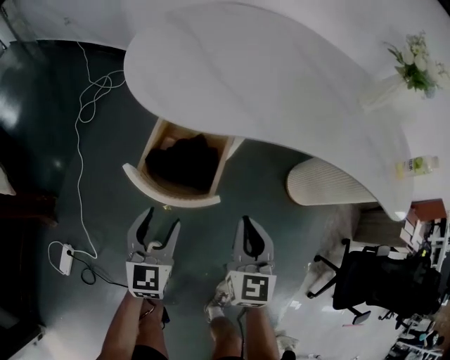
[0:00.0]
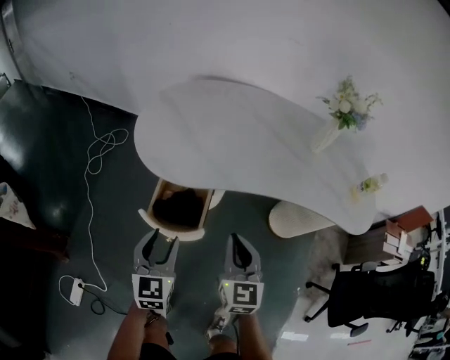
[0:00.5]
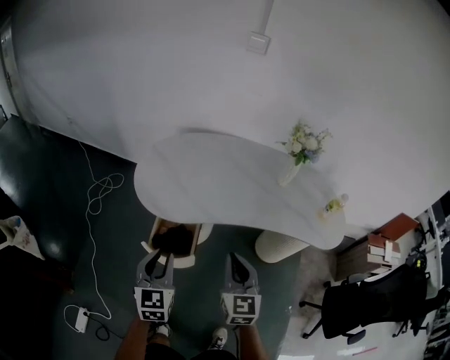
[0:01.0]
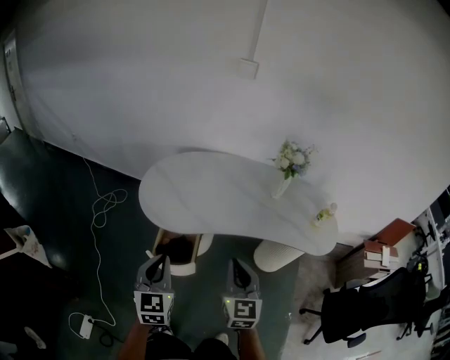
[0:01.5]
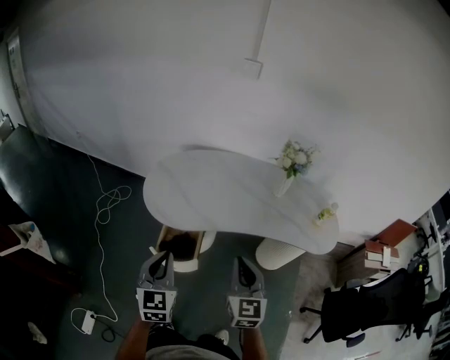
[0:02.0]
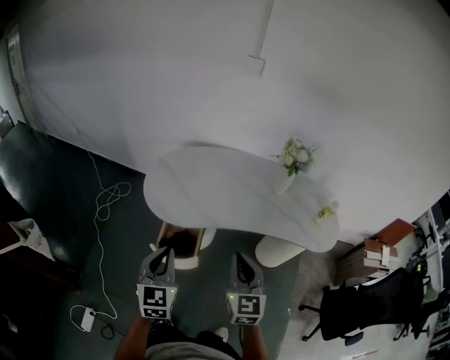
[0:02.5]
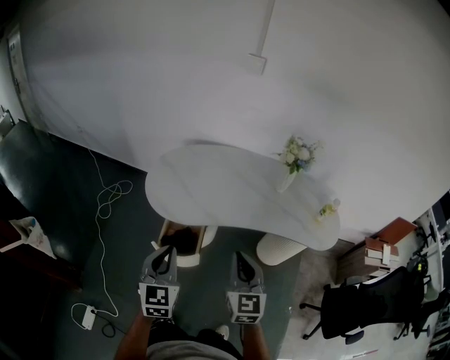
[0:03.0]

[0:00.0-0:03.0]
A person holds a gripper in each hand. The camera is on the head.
0:00.0 to 0:01.5: The grippers both shift upward by roughly 40 cm. The left gripper closes up.
0:01.5 to 0:03.0: The grippers move only a little.

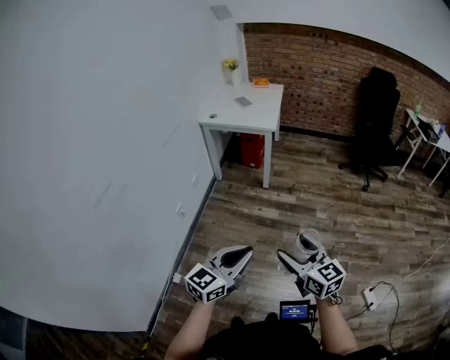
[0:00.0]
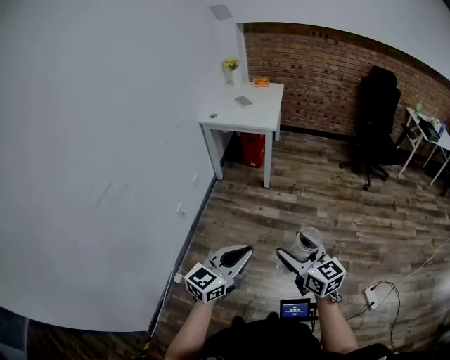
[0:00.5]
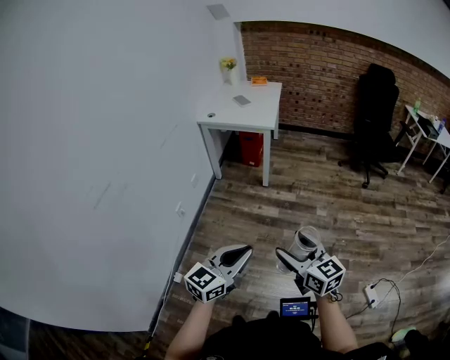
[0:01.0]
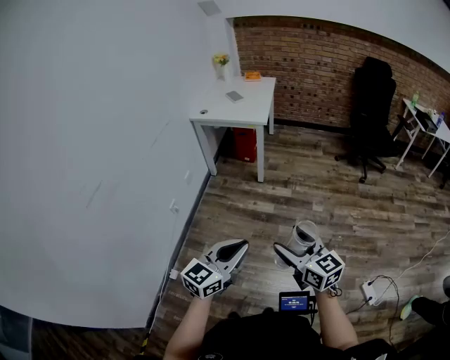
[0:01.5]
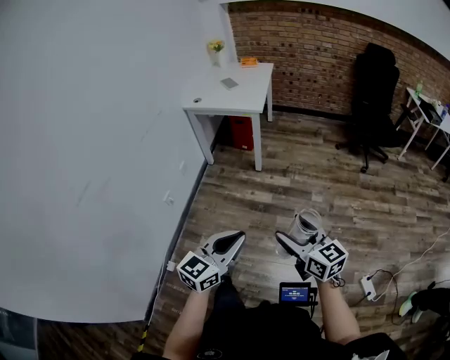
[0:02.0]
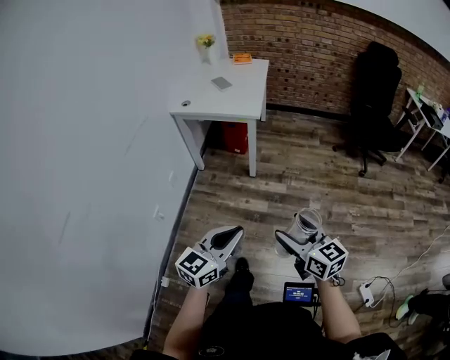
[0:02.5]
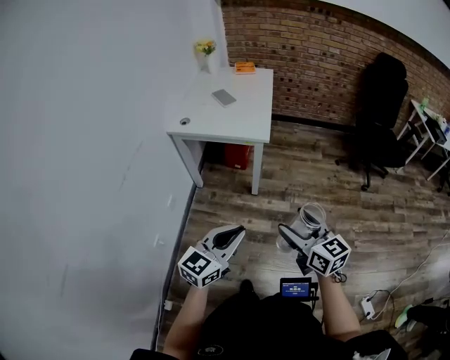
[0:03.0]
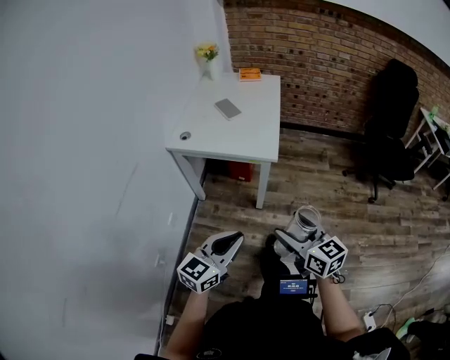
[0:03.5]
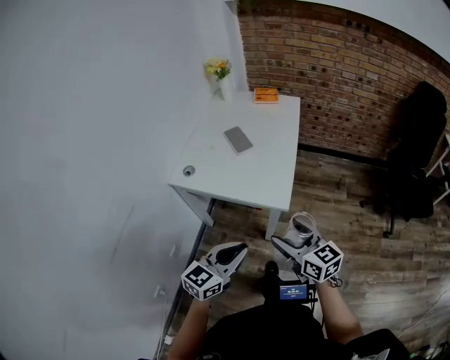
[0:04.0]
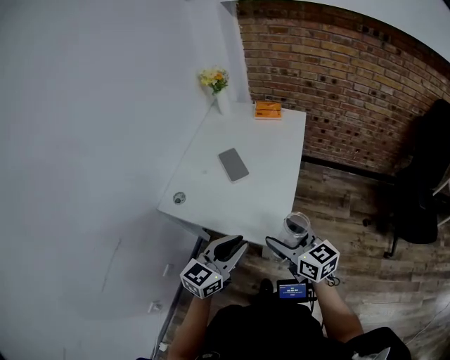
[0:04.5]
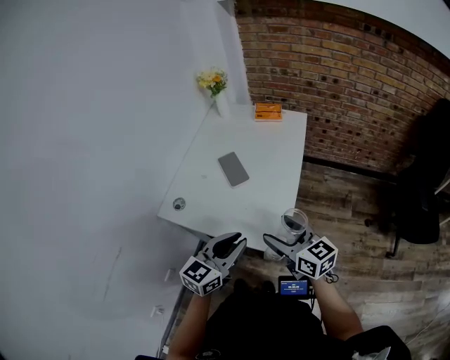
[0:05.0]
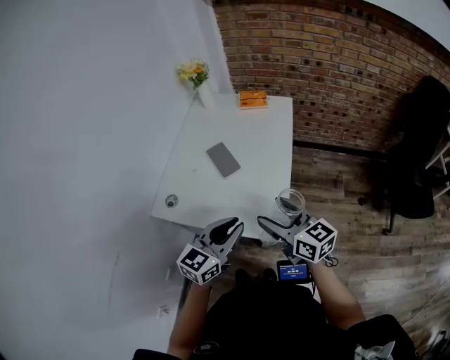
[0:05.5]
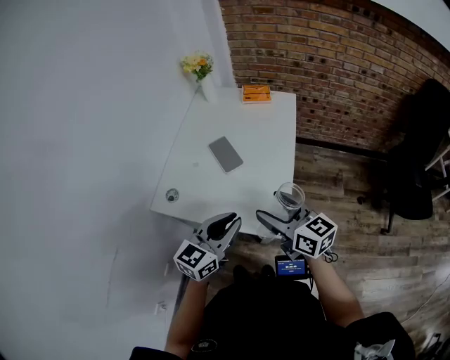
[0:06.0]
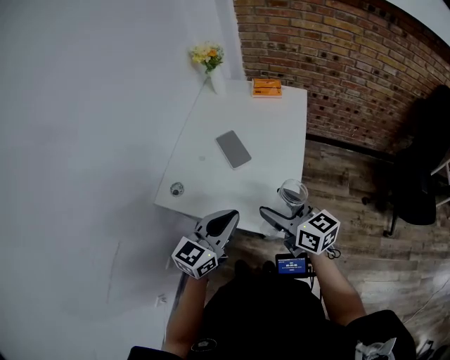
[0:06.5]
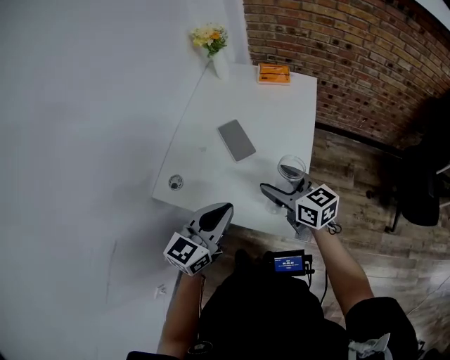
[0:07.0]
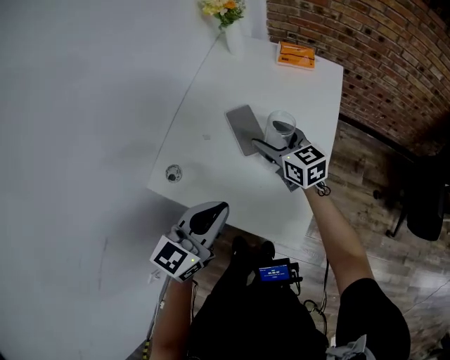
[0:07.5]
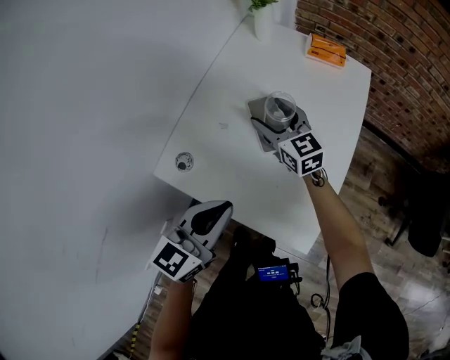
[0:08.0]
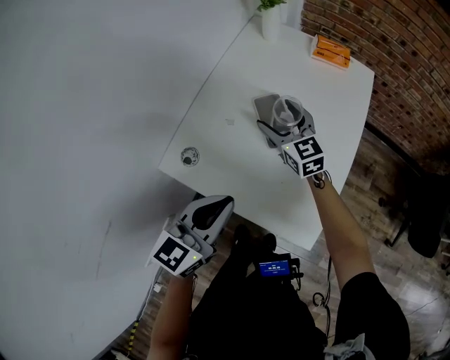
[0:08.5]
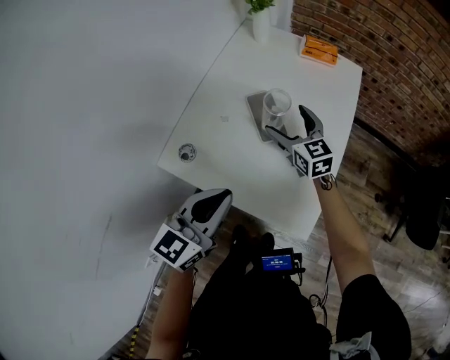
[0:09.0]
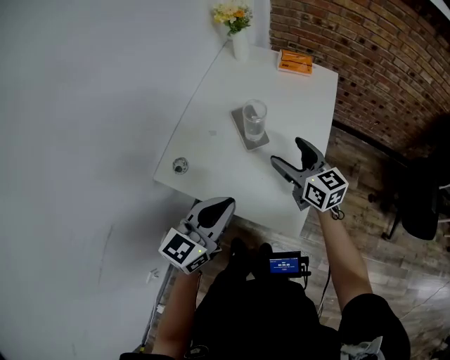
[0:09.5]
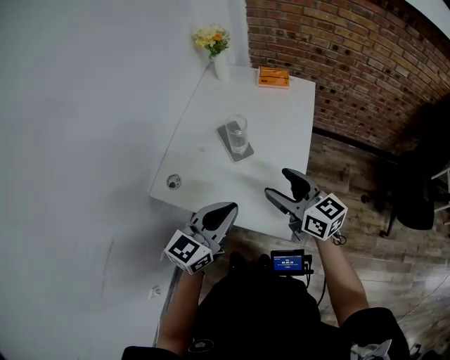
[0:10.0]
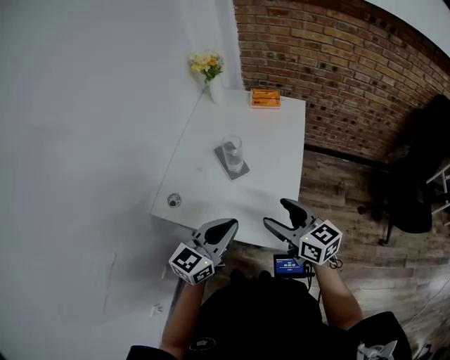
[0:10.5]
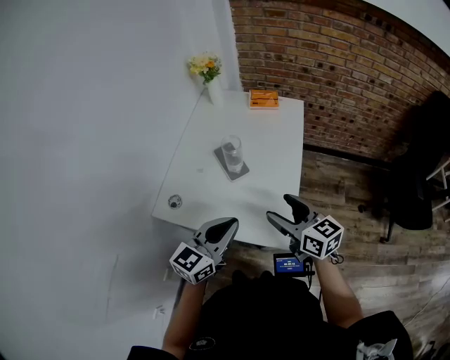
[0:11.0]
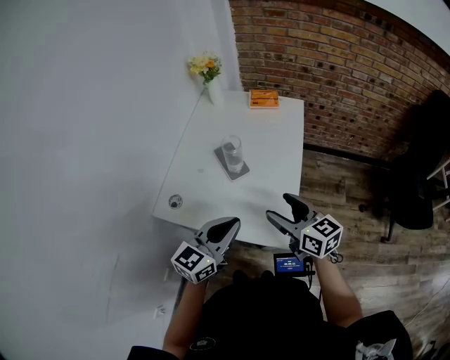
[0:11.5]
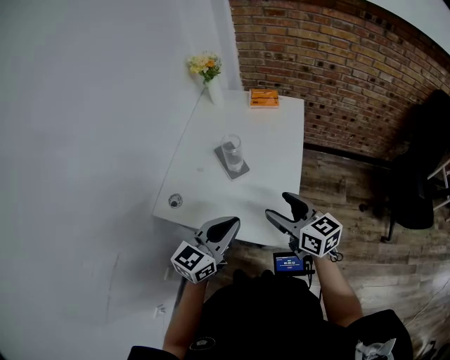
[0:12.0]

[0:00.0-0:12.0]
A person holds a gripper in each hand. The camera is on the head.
0:00.0 to 0:02.0: The right gripper heads to the right and forward, covering approximately 10 cm. The left gripper shifts about 5 cm to the right.
0:02.0 to 0:04.0: The pair of grippers is taken forward, some 70 cm.
0:04.0 to 0:06.0: The two grippers go some 25 cm forward.
0:06.0 to 0:08.0: The right gripper travels forward and to the left by approximately 35 cm, and rotates roughly 20 degrees; the left gripper heads to the left and forward, covering about 15 cm.
0:08.0 to 0:10.0: The right gripper goes about 30 cm backward, to the right and upward, while the left gripper heads to the right and backward, covering some 10 cm.
0:10.0 to 0:12.0: The grippers move only a little.

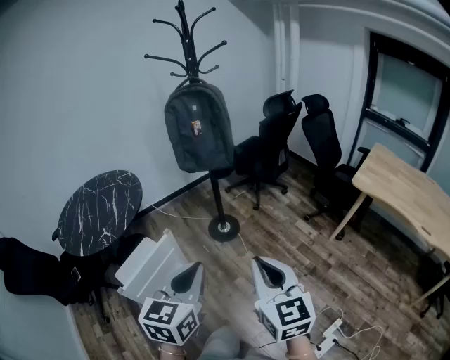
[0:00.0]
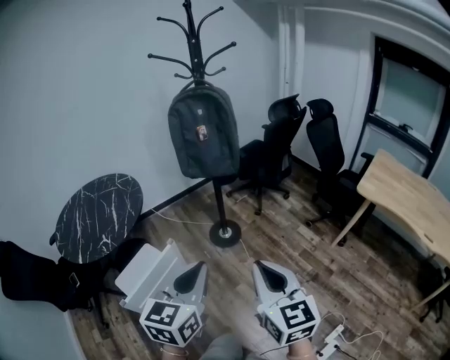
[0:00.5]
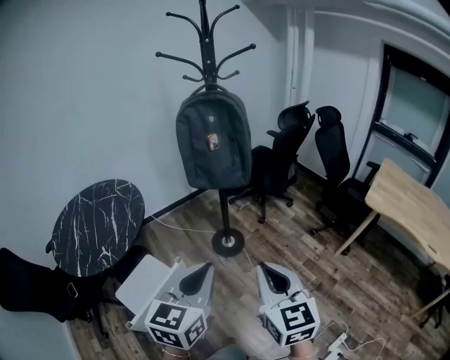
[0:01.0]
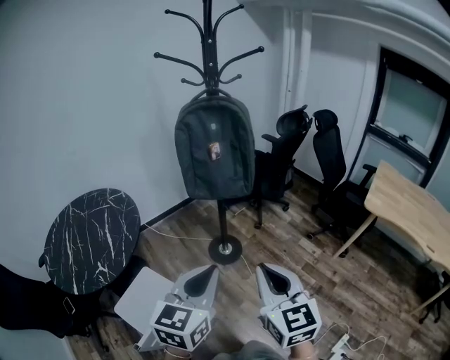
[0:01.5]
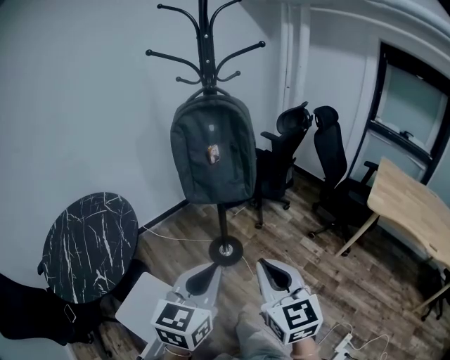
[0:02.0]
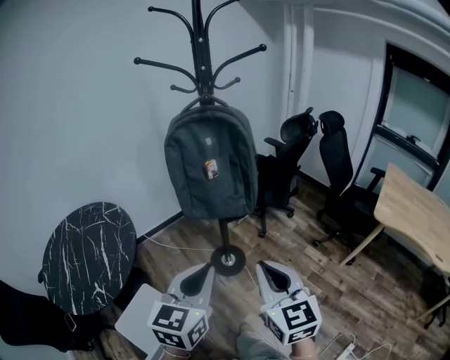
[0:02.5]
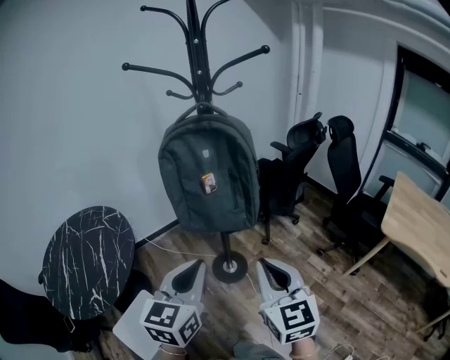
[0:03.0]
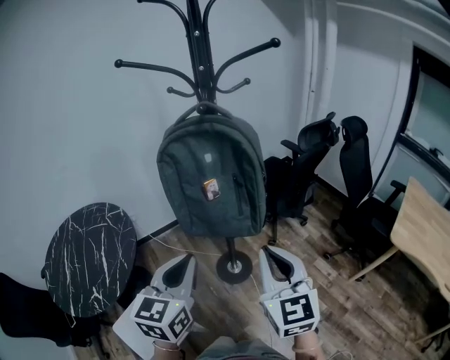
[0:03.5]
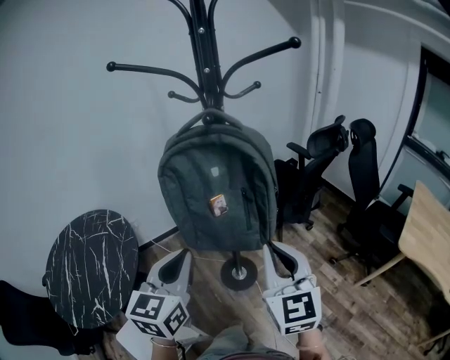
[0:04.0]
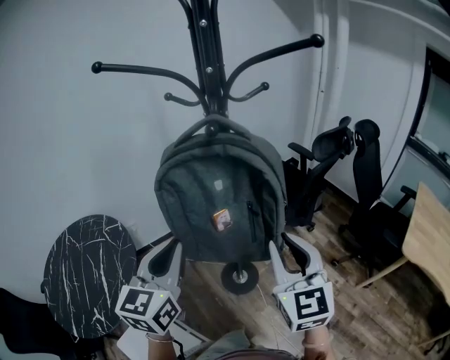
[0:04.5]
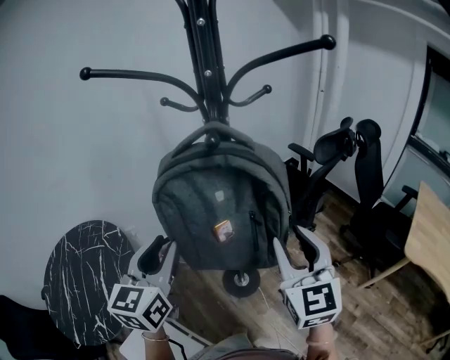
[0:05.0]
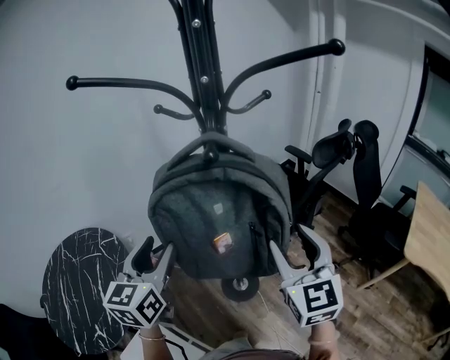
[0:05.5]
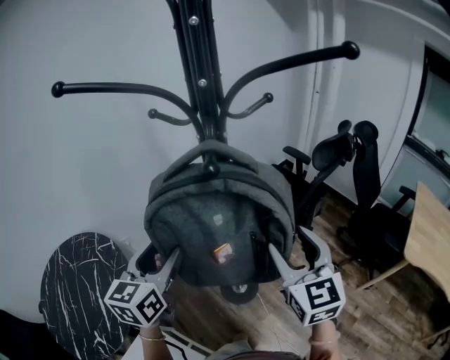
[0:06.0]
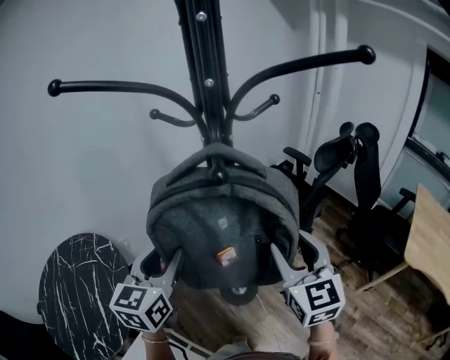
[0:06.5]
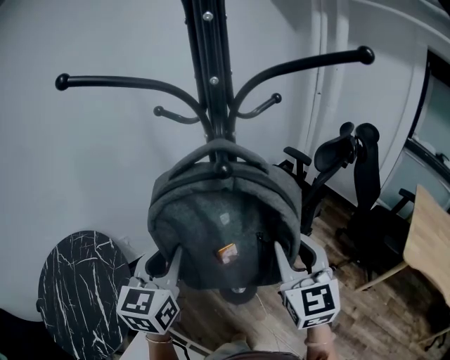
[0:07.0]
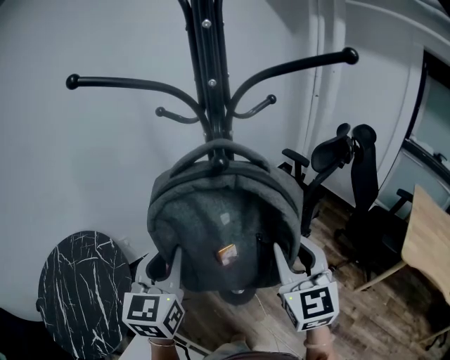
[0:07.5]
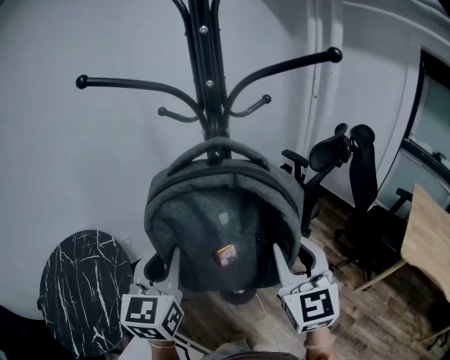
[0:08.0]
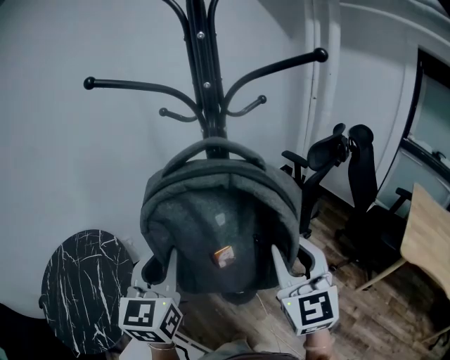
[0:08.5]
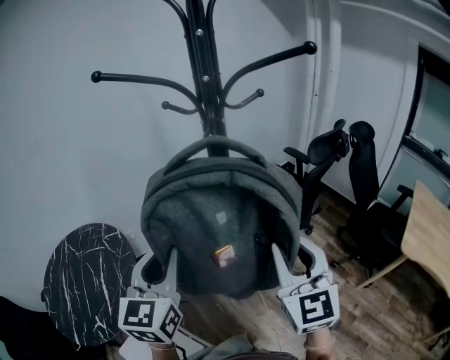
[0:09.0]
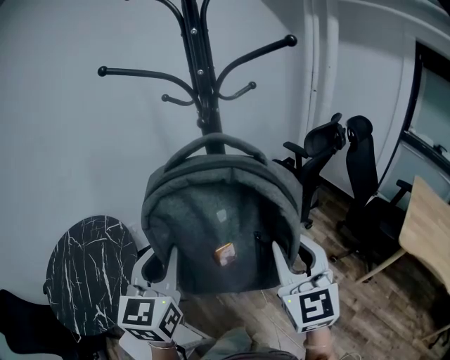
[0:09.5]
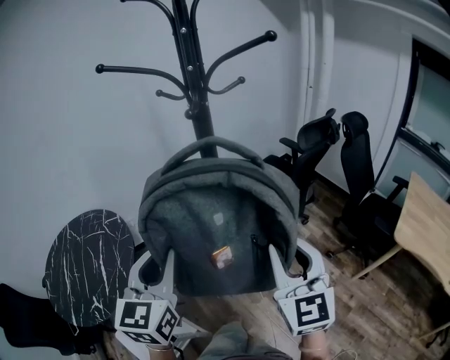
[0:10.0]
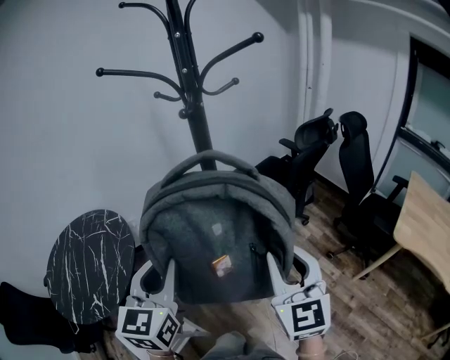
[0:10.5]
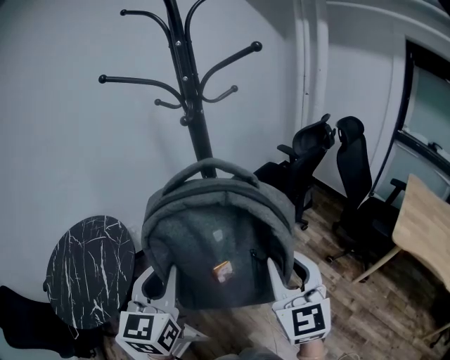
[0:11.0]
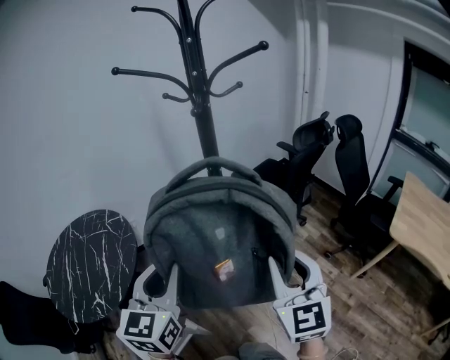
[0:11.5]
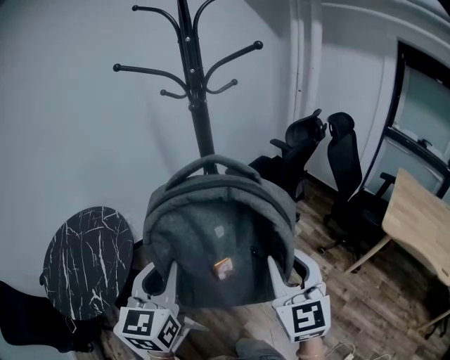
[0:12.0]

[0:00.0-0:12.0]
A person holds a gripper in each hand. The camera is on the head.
0:00.0 to 0:02.0: The right gripper goes approximately 25 cm forward and to the left, while the left gripper is displaced forward by some 25 cm.
0:02.0 to 0:04.0: The grippers both shift forward by roughly 30 cm.
0:04.0 to 0:06.0: Both grippers travel together forward, some 15 cm. The right gripper opens up; the left gripper opens up.
0:06.0 to 0:08.0: The right gripper shifts by about 5 cm, and closes. Meanwhile the left gripper is displaced backward by about 5 cm, and closes up.
0:08.0 to 0:10.0: Both grippers travel together backward, about 15 cm.
0:10.0 to 0:12.0: Both grippers move backward, some 10 cm.
